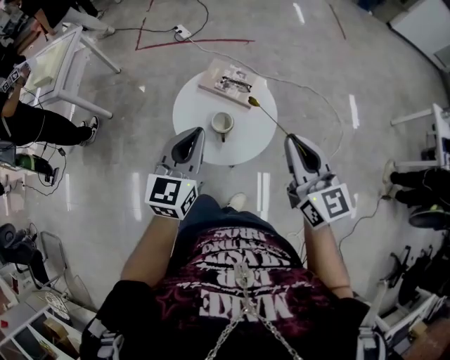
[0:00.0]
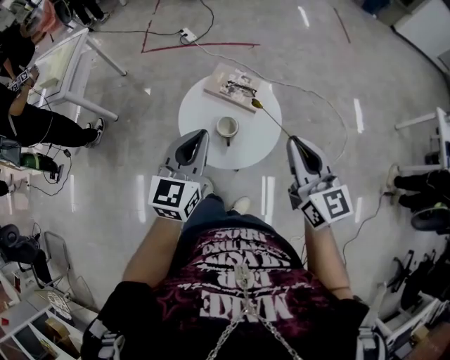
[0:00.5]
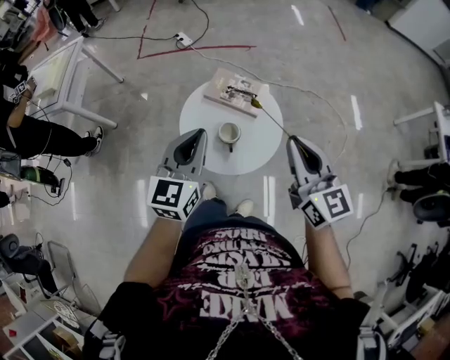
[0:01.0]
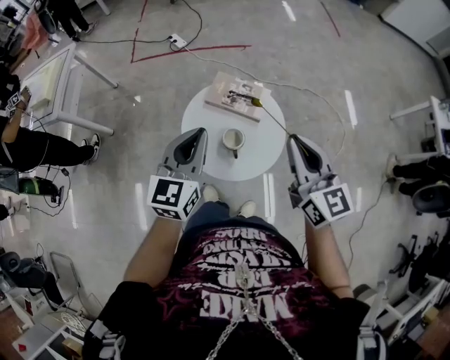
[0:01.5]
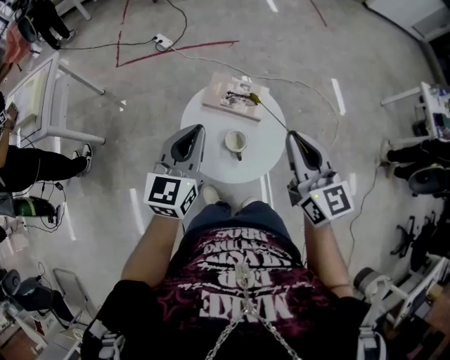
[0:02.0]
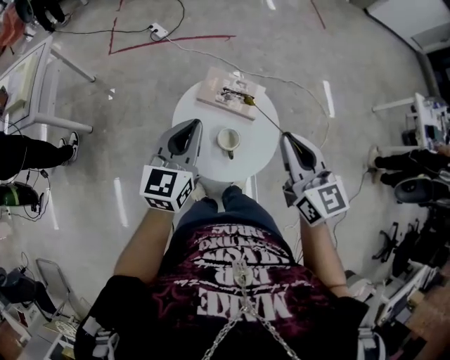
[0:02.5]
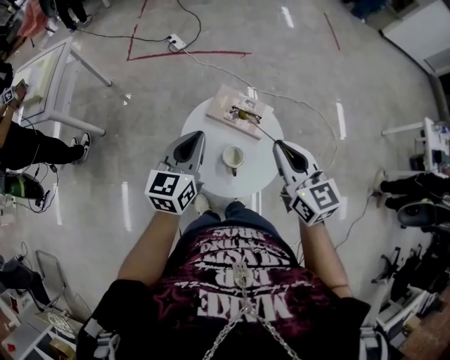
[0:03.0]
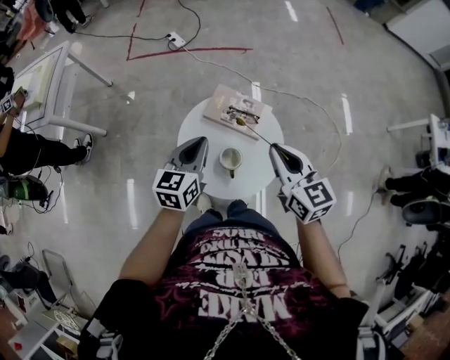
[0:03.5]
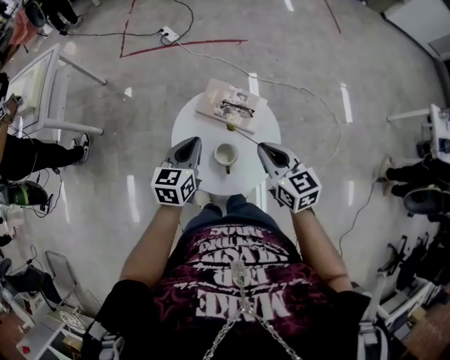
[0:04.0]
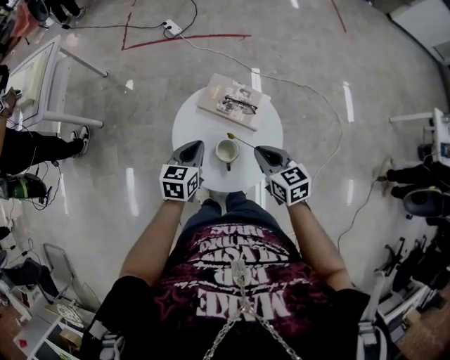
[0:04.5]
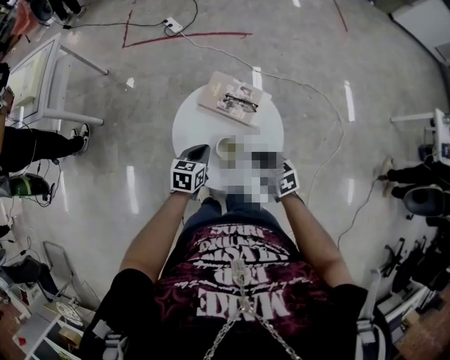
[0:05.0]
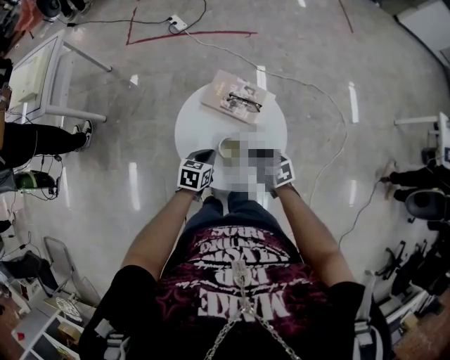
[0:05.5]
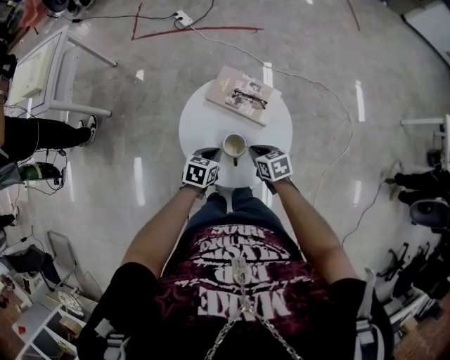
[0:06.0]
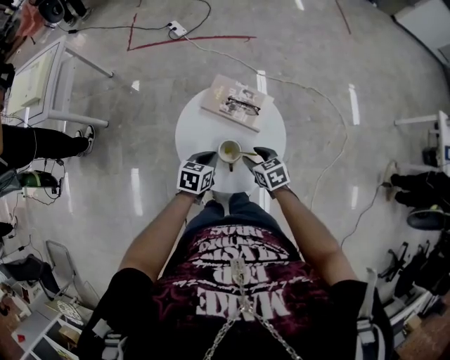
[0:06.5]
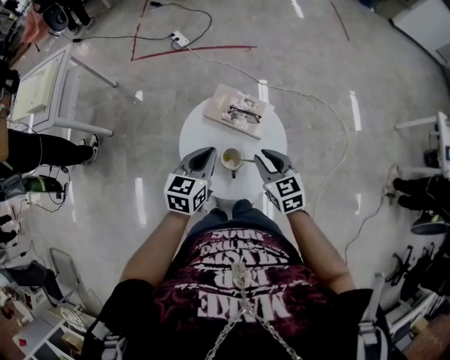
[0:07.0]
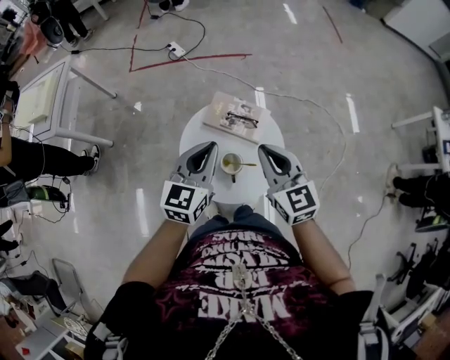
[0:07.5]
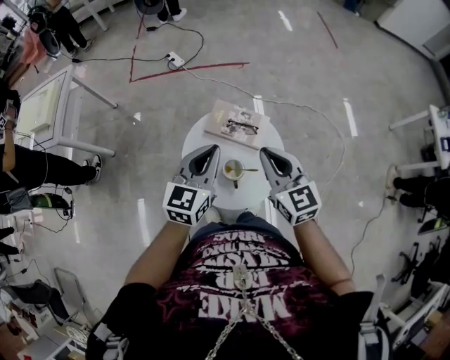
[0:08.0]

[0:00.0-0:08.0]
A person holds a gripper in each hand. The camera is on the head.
0:00.0 to 0:02.0: The left gripper goes about 15 cm forward and to the left; the right gripper heads to the left and forward, covering roughly 10 cm.
0:02.0 to 0:04.0: The left gripper goes approximately 15 cm downward, and rotates some 20 degrees. Meanwhile the right gripper is displaced downward and forward by some 15 cm, and turns by some 20 degrees.
0:04.0 to 0:06.0: The right gripper heads downward, covering approximately 20 cm, and changes its angle by roughly 30 degrees; the left gripper moves downward and backward, approximately 20 cm, and swivels about 30 degrees.
0:06.0 to 0:08.0: The two grippers go about 30 cm upward. The right gripper tips its fingers upward by roughly 40 degrees, and opens, then closes once more. The left gripper angles its fingers upward, by approximately 40 degrees.

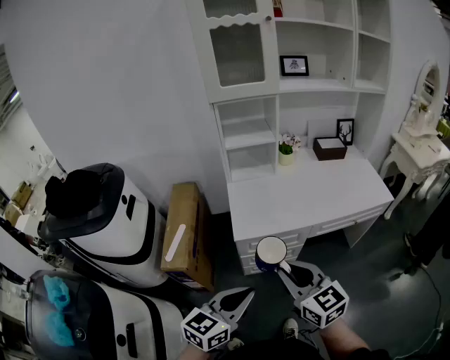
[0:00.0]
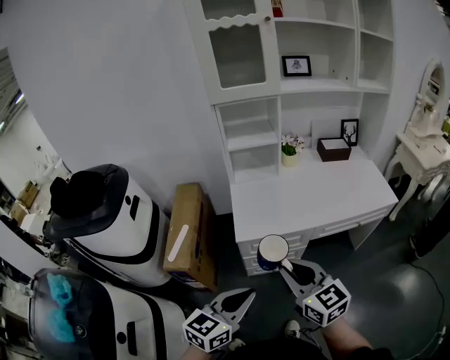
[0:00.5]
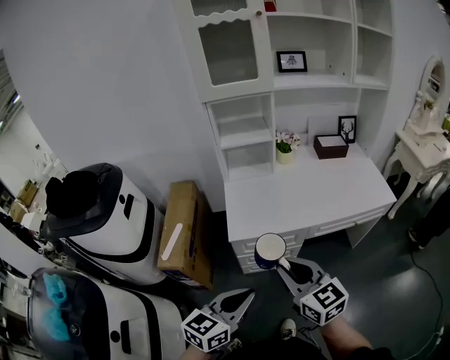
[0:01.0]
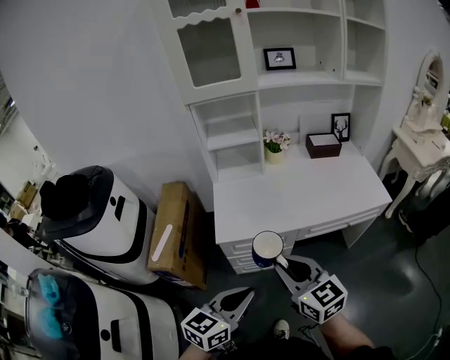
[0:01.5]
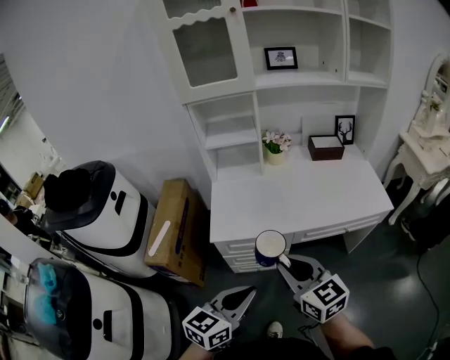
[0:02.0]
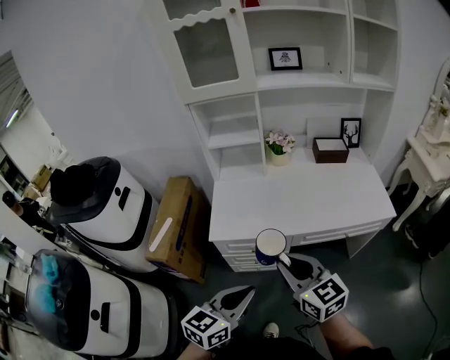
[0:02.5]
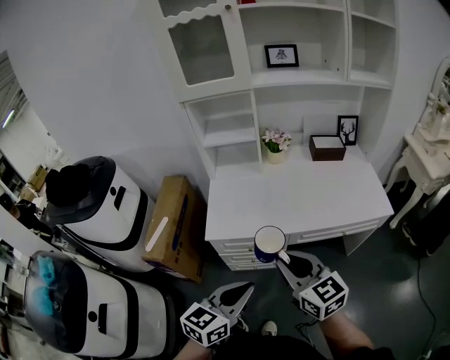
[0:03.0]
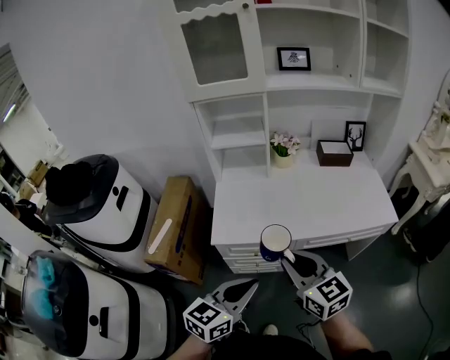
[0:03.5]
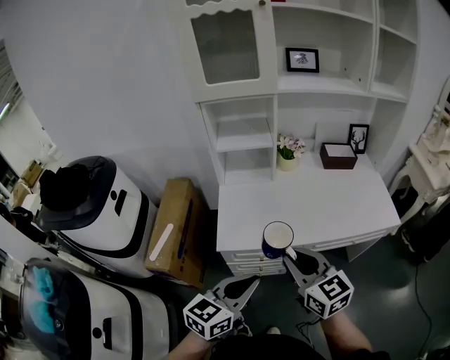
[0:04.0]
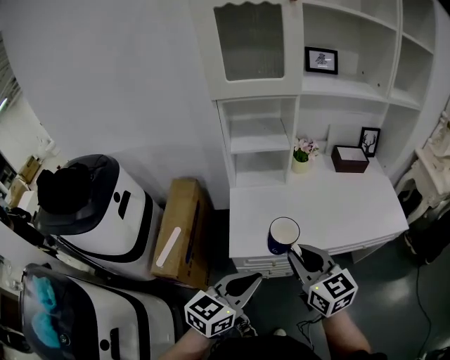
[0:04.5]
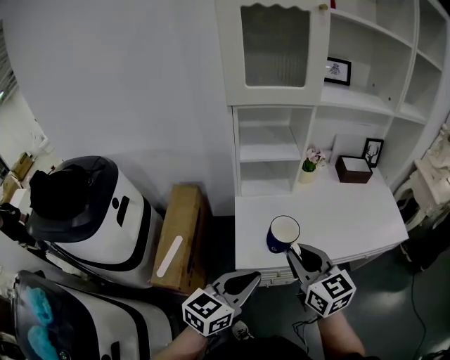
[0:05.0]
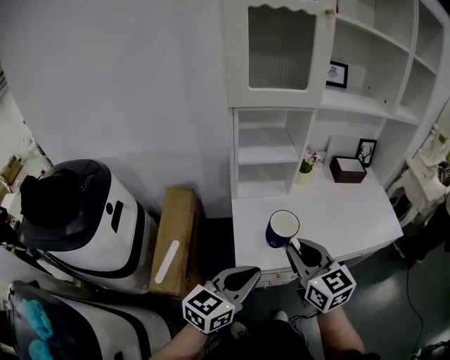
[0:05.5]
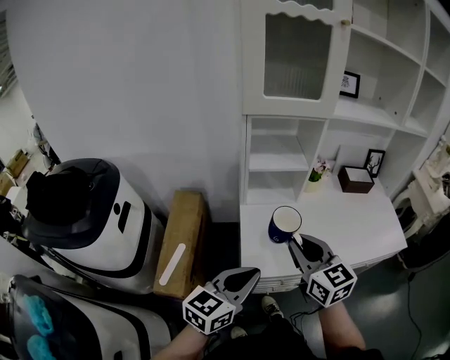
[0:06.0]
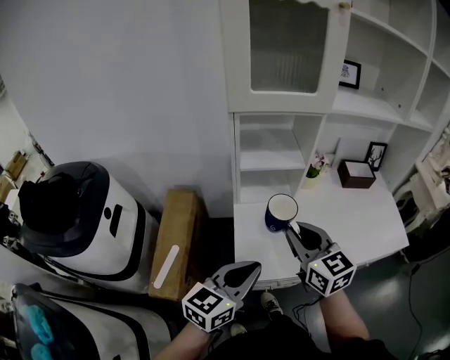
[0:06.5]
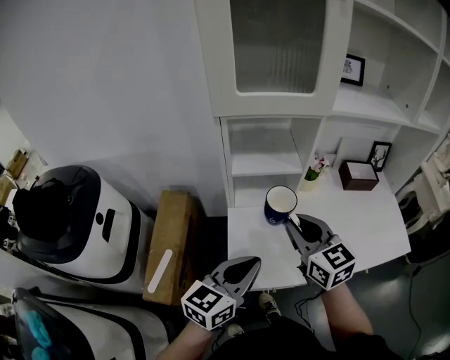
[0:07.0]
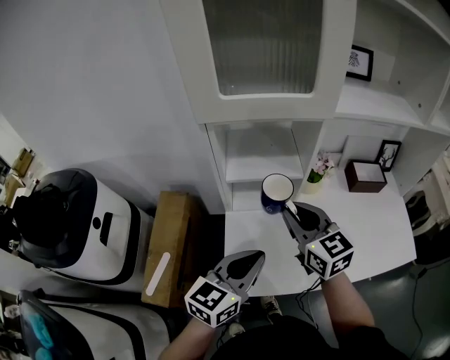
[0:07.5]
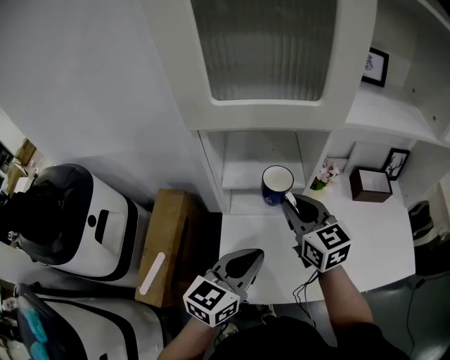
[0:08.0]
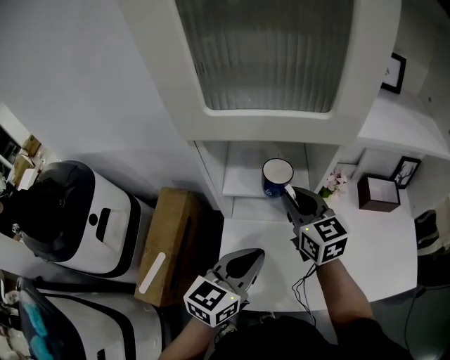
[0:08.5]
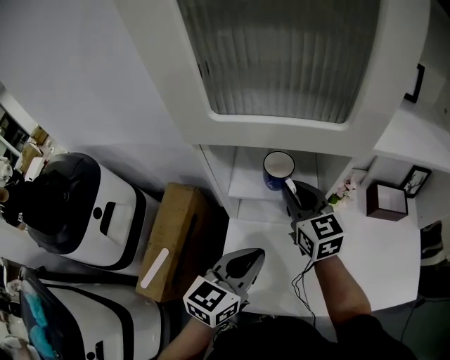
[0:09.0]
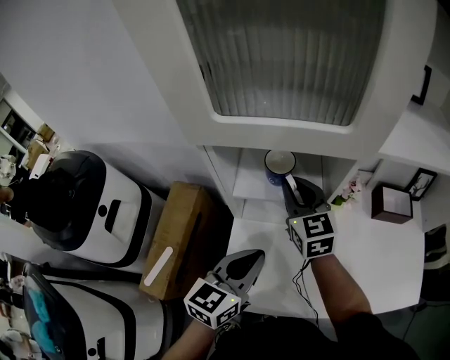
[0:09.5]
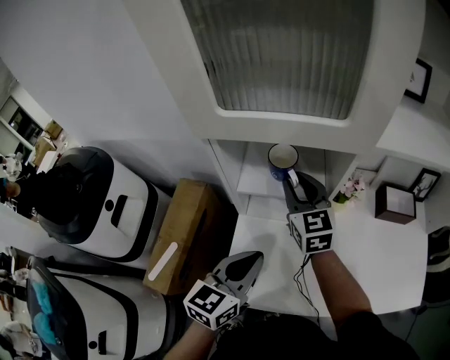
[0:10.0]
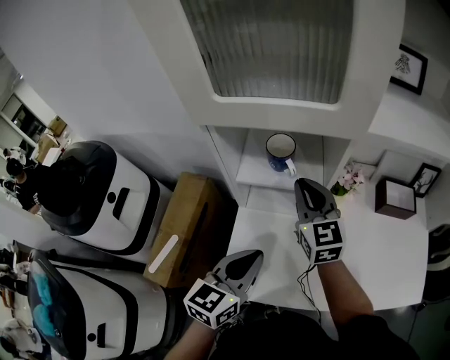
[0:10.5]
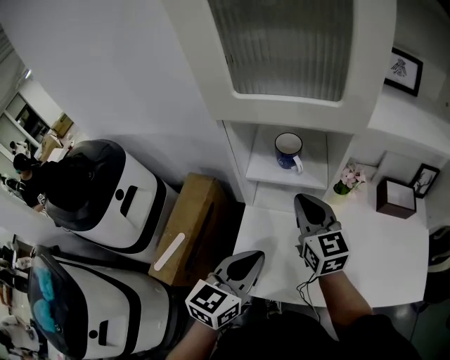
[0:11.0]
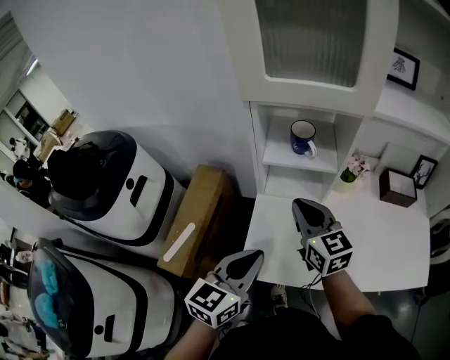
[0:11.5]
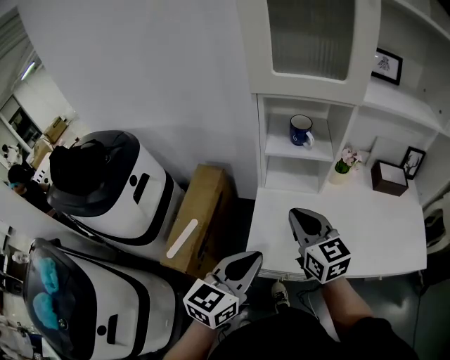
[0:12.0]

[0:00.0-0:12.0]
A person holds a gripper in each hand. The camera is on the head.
0:00.0 to 0:02.0: The right gripper moves to the right and forward, some 15 cm. Meanwhile the left gripper travels to the right by approximately 15 cm.
0:02.0 to 0:04.0: The two grippers go about 10 cm forward.
0:04.0 to 0:06.0: The two grippers go about 20 cm to the left and forward.
0:06.0 to 0:08.0: The two grippers go about 25 cm forward.
0:08.0 to 0:10.0: The right gripper shifts some 10 cm forward.
0:10.0 to 0:12.0: The left gripper is displaced backward and to the left by approximately 20 cm. The right gripper travels backward by roughly 25 cm.

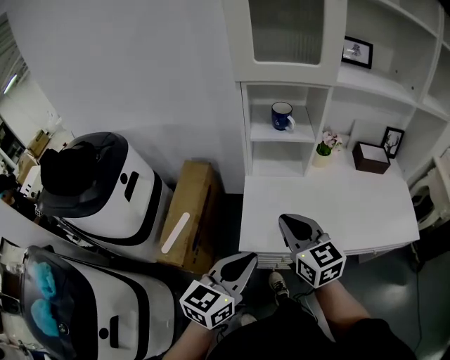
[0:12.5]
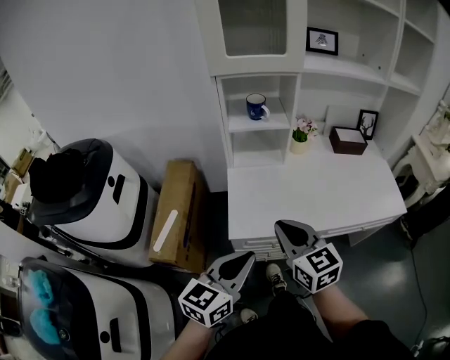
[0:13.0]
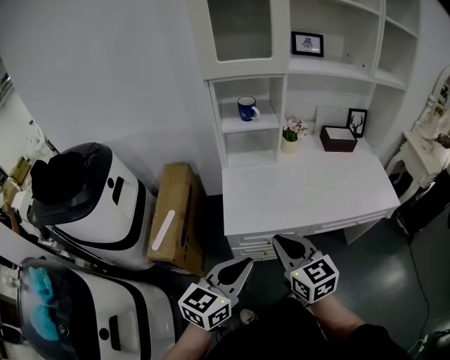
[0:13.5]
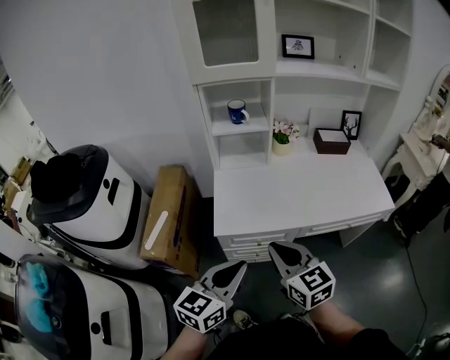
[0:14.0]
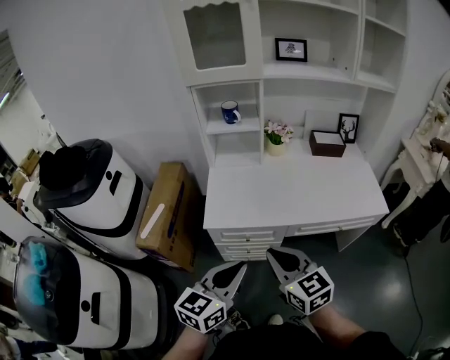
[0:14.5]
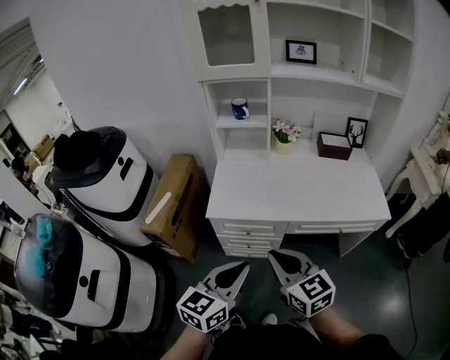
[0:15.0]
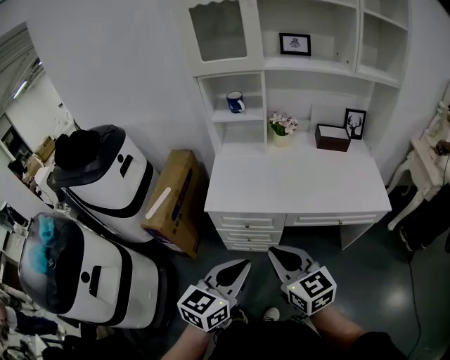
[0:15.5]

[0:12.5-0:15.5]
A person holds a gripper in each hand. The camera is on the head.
0:12.5 to 0:14.0: Both grippers travel together backward and to the right, roughly 15 cm.
0:14.0 to 0:15.5: The left gripper is displaced to the right and backward by about 15 cm. The right gripper heads backward and to the right, covering about 15 cm.

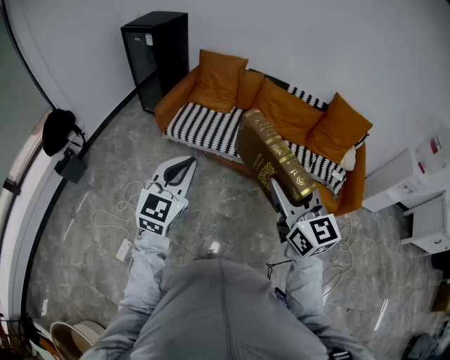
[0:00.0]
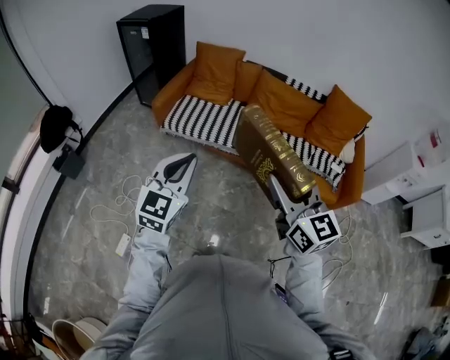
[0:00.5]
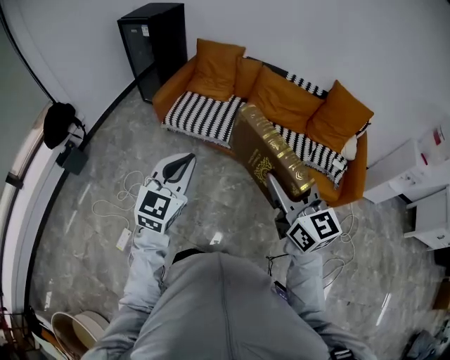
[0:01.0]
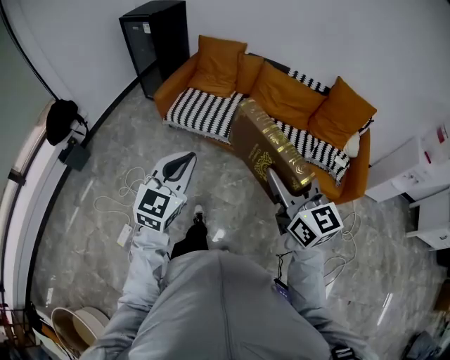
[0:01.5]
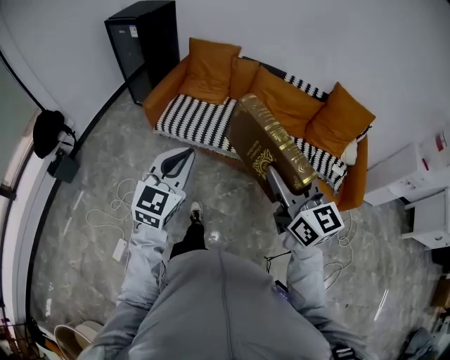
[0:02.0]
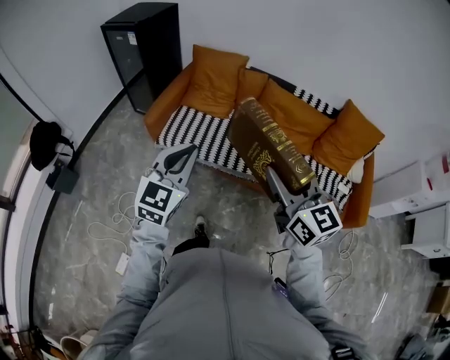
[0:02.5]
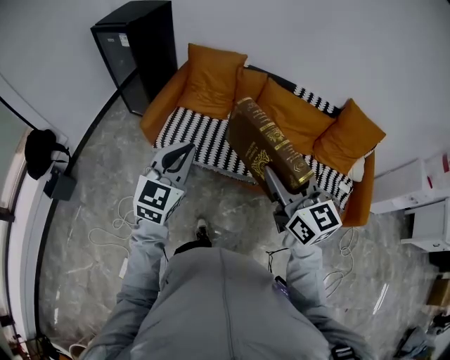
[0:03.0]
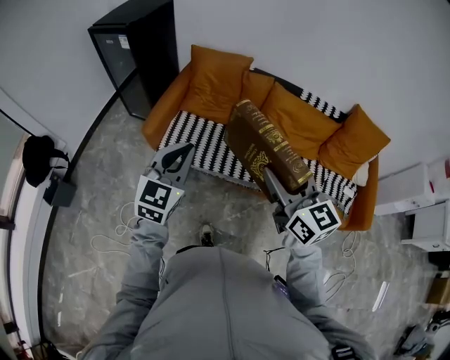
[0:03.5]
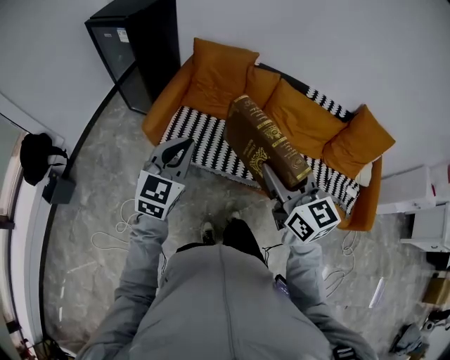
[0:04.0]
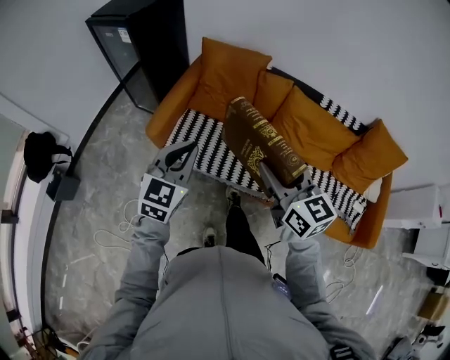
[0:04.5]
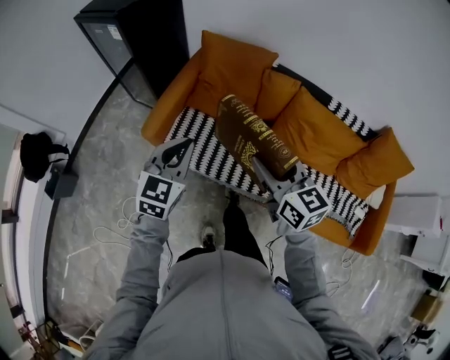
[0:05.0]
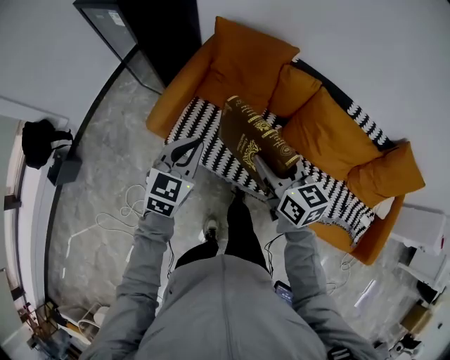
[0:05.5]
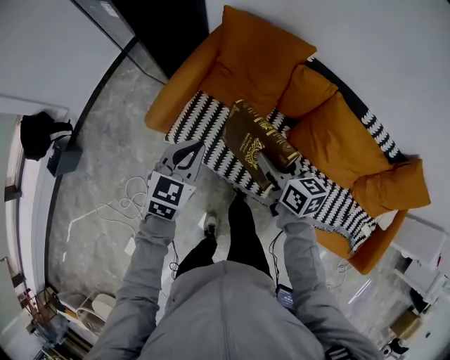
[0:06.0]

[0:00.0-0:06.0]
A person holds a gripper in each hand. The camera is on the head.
0:00.0 to 0:02.0: The two grippers go about 5 cm forward.
0:02.0 to 0:04.0: The two grippers go approximately 25 cm forward and to the left.
0:04.0 to 0:06.0: The grippers both shift forward and downward by about 30 cm. The right gripper changes its angle by approximately 30 degrees, while the left gripper swivels about 20 degrees.
